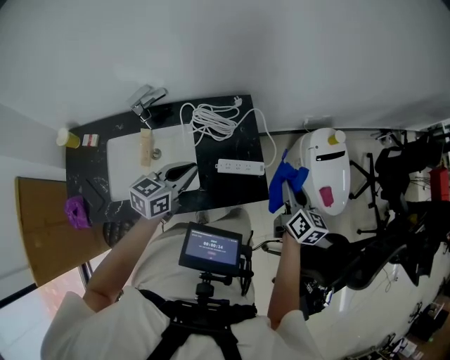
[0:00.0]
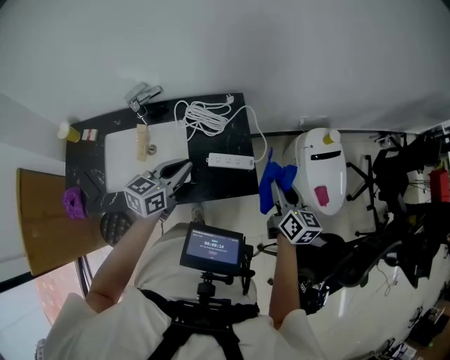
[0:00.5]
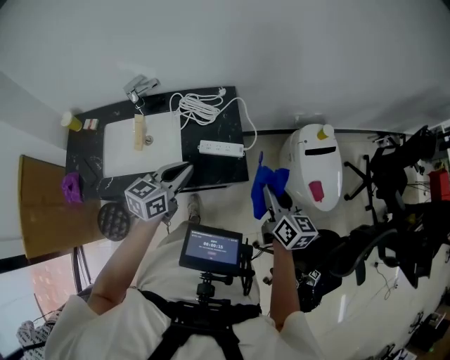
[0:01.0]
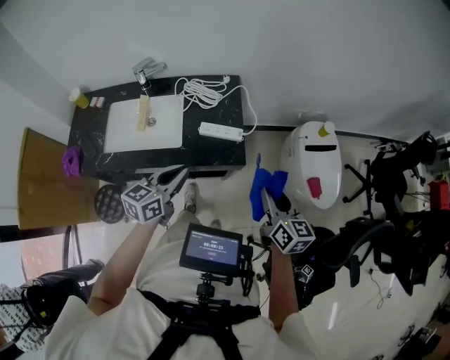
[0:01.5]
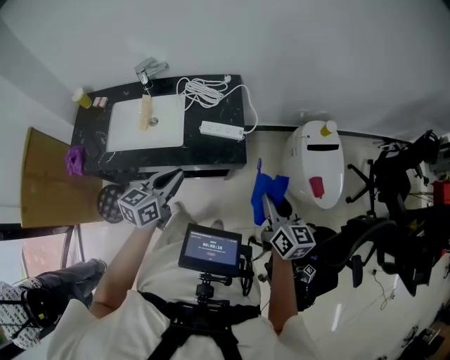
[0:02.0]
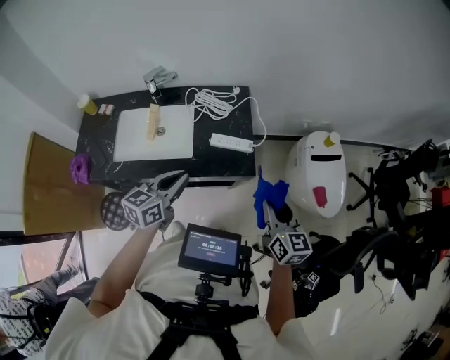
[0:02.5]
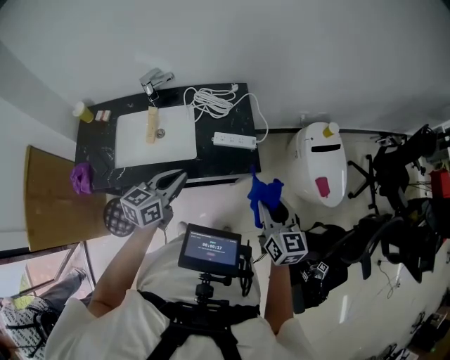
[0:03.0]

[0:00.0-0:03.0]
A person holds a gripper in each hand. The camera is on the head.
0:00.0 to 0:01.5: Both grippers move backward and to the right, about 30 cm.
0:01.5 to 0:03.0: The grippers both shift to the left by approximately 10 cm.

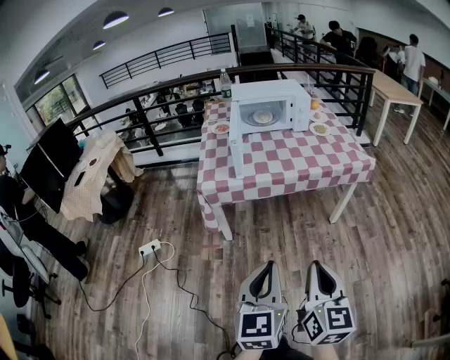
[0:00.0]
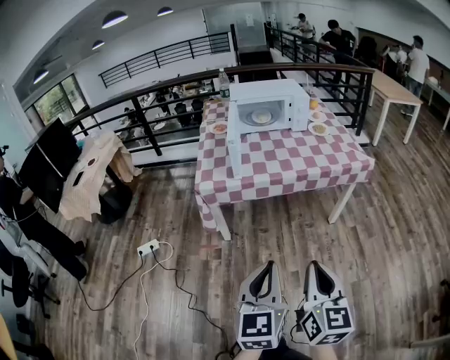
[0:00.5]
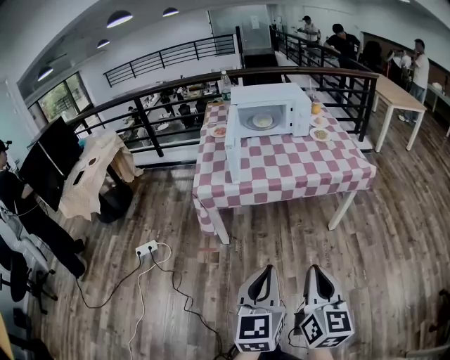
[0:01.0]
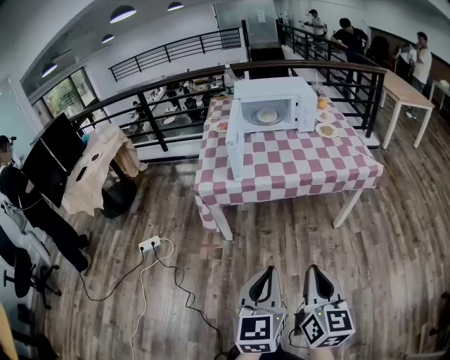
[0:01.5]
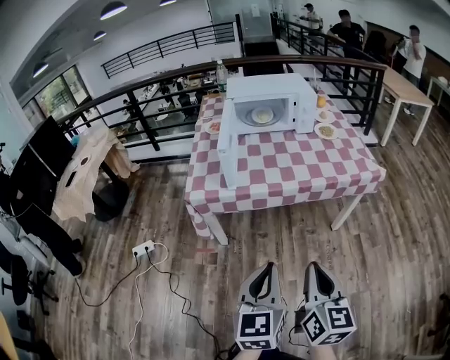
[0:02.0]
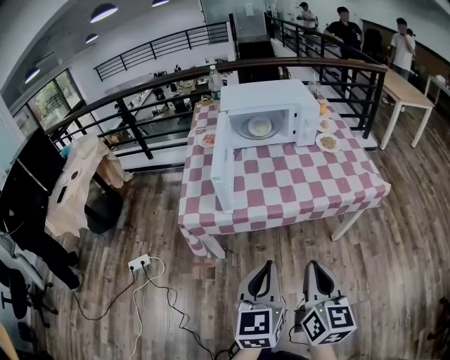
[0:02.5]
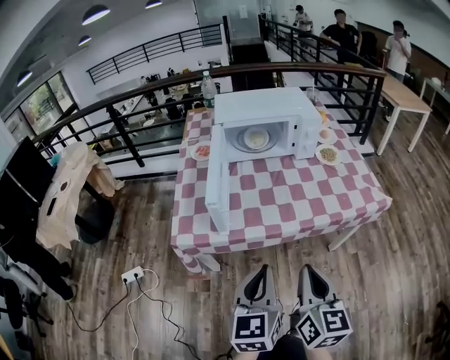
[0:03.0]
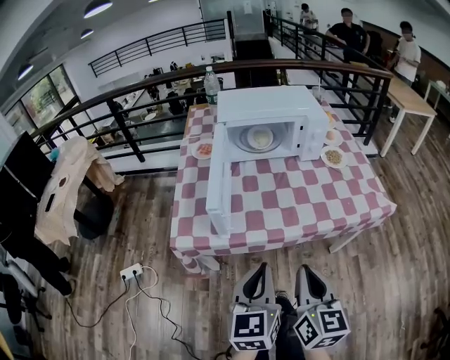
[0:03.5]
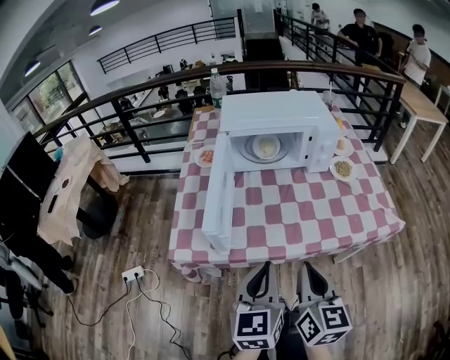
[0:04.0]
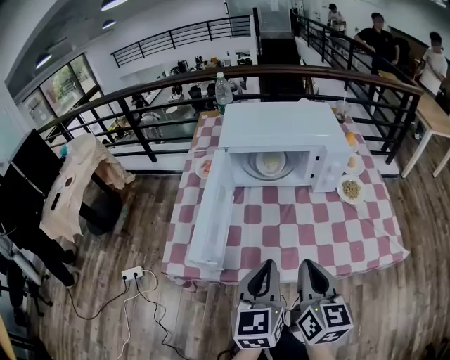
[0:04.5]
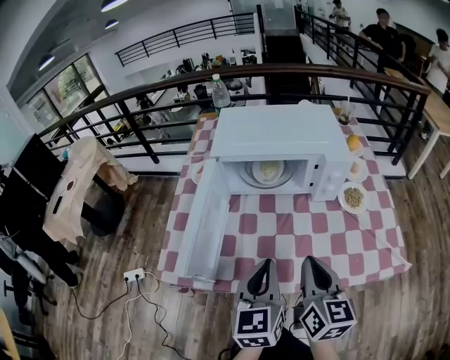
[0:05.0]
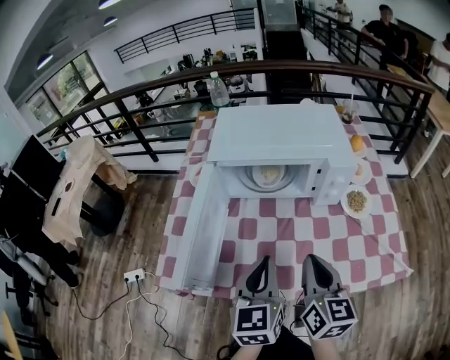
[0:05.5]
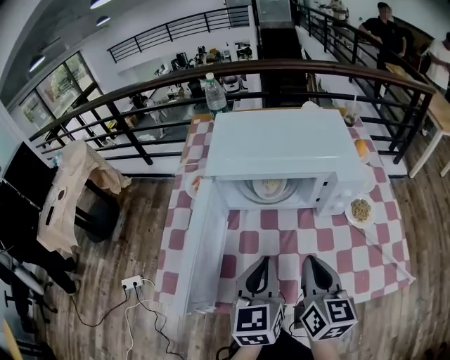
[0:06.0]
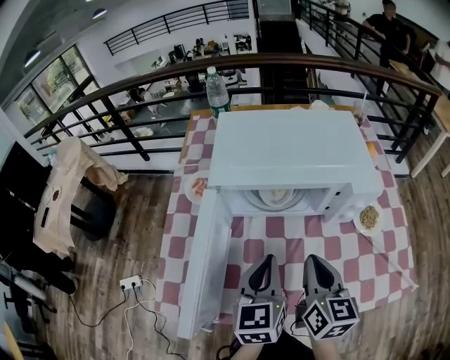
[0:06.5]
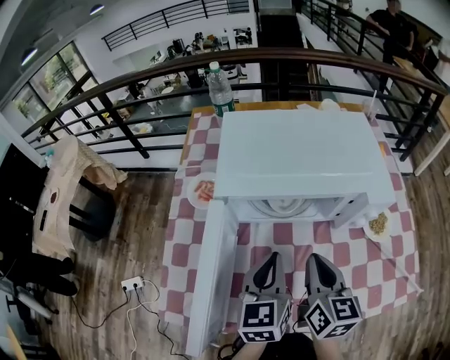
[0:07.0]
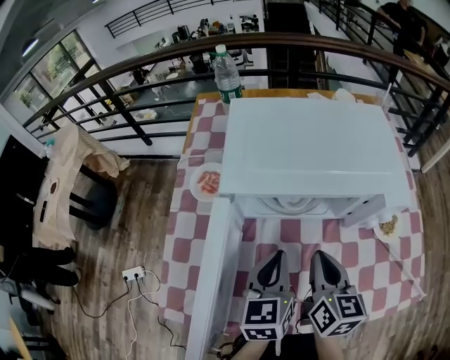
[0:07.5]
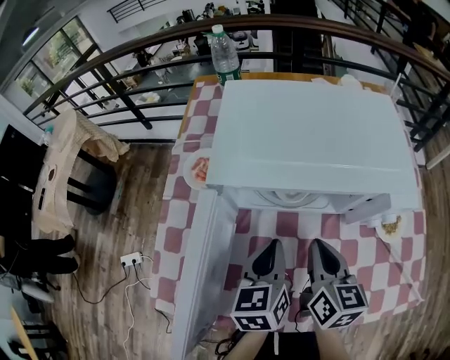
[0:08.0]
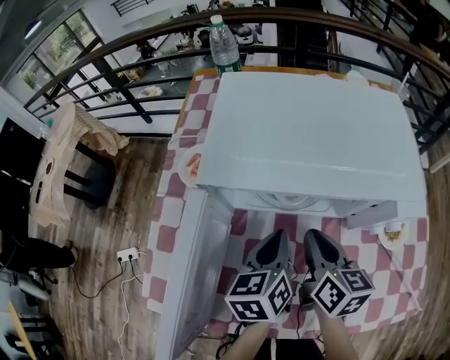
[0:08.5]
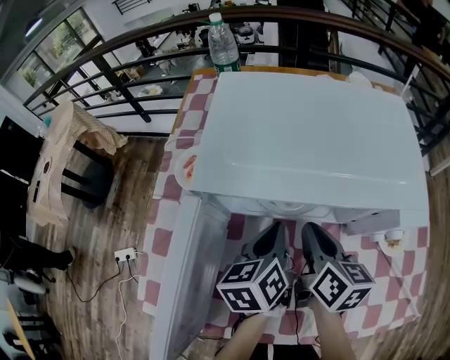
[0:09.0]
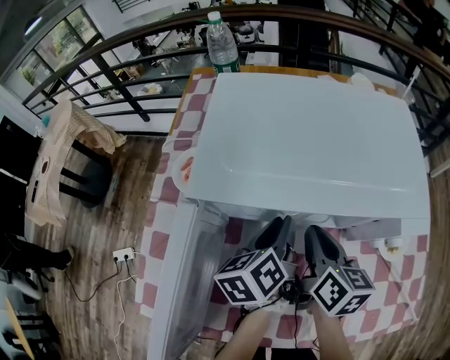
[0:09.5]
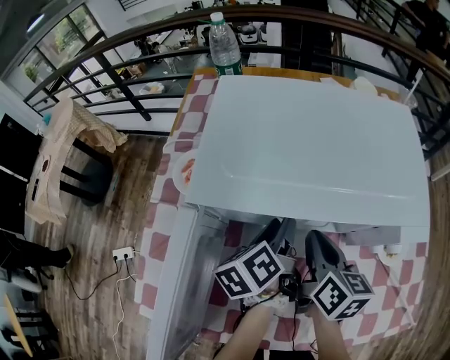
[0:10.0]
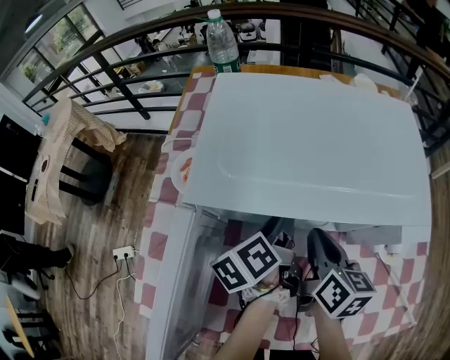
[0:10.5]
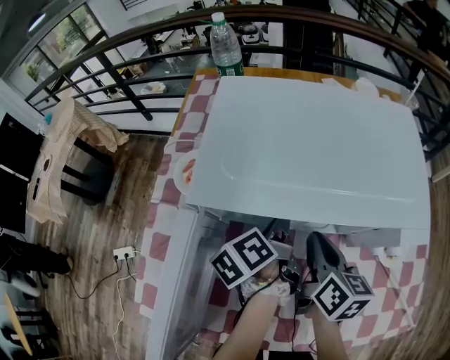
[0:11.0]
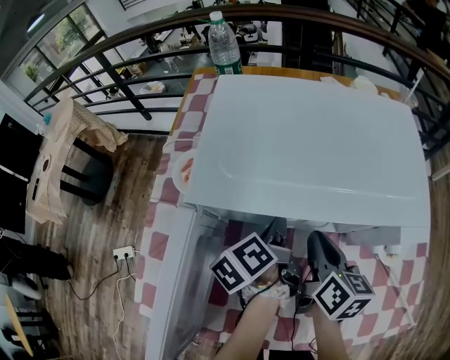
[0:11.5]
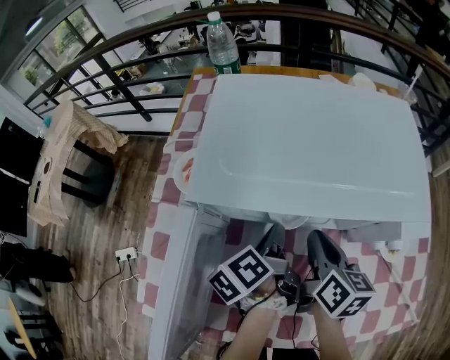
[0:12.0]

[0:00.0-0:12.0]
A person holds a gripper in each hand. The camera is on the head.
0:00.0 to 0:02.0: The two grippers go about 10 cm forward.
0:02.0 to 0:04.0: The grippers both shift forward by some 30 cm.
0:04.0 to 0:06.0: Both grippers travel together forward, roughly 25 cm.
0:06.0 to 0:08.0: The two grippers go approximately 15 cm forward and downward.
0:08.0 to 0:10.0: The two grippers go some 10 cm forward. The left gripper turns by approximately 40 degrees, and opens its fingers.
0:10.0 to 0:12.0: The left gripper closes its fingers.

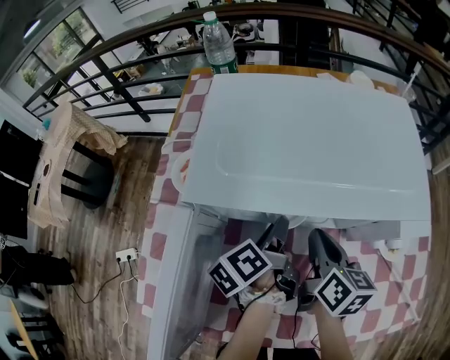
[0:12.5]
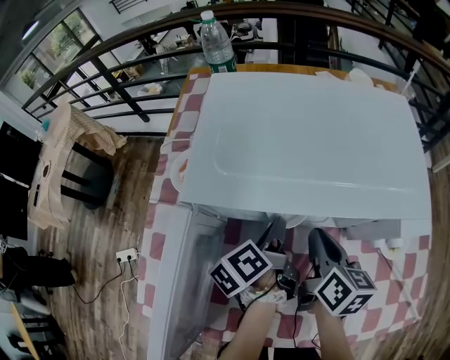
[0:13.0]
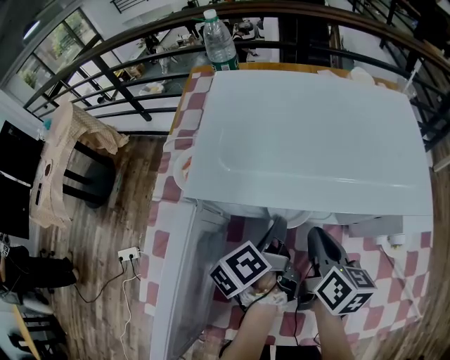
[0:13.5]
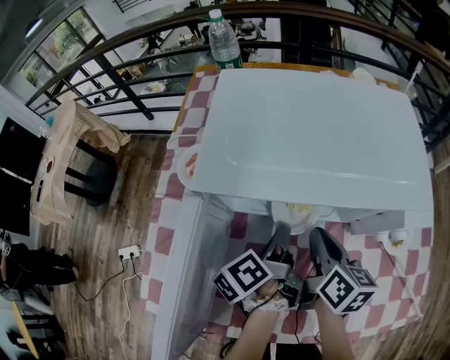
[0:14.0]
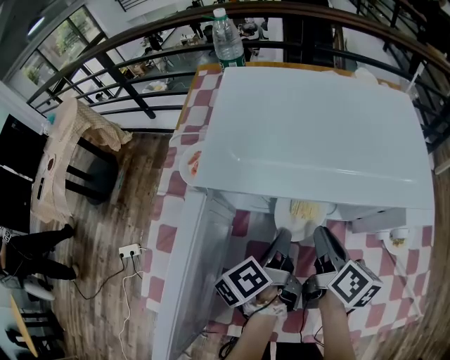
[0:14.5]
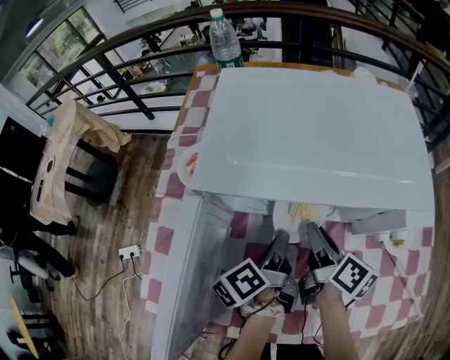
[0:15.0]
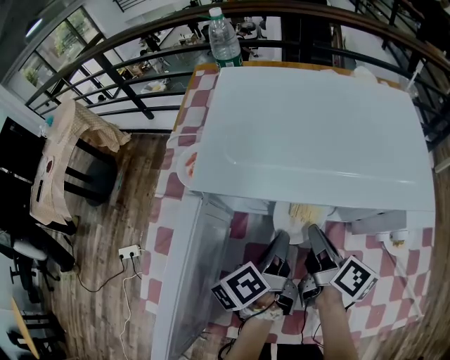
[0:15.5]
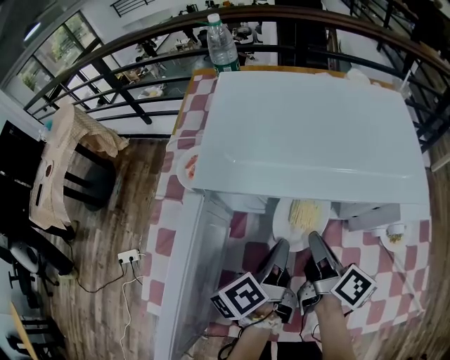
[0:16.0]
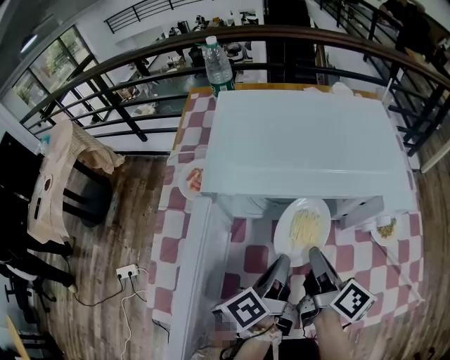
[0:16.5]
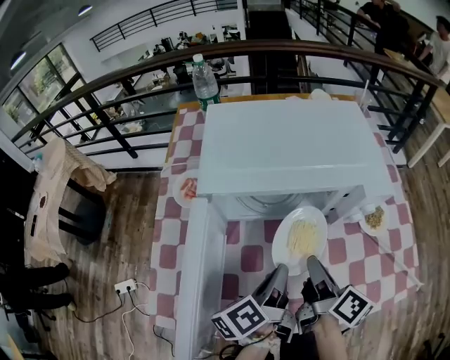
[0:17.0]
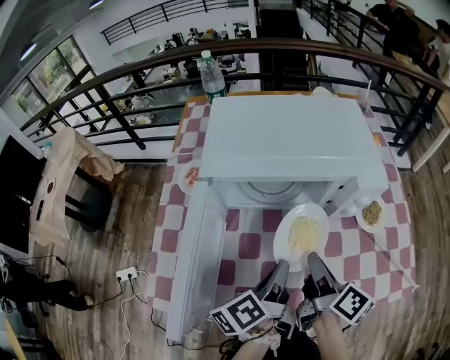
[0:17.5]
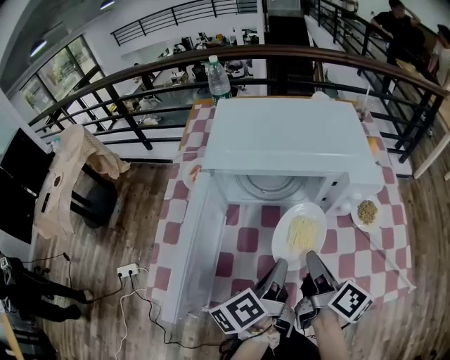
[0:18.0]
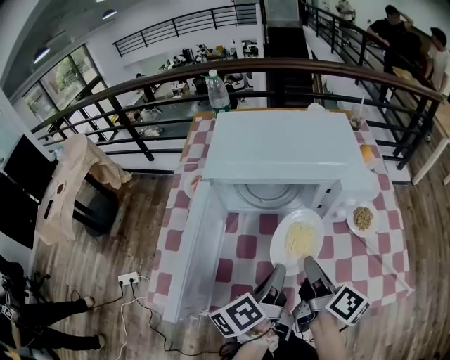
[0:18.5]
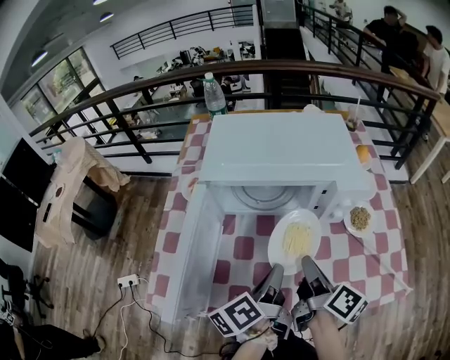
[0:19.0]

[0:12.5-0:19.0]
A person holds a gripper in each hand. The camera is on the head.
0:12.5 to 0:14.5: The left gripper closes up.
0:14.5 to 0:17.0: The two grippers go approximately 10 cm backward and upward.
0:17.0 to 0:19.0: The left gripper shifts by approximately 5 cm, while the right gripper ends up some 5 cm from where it was.

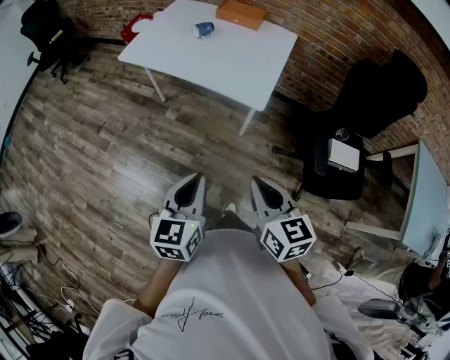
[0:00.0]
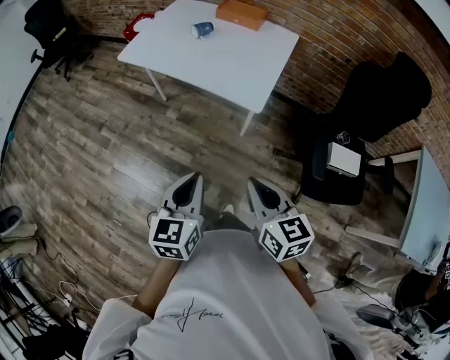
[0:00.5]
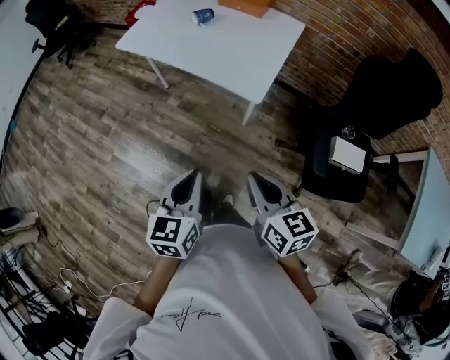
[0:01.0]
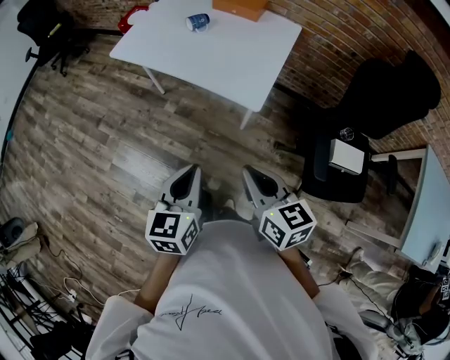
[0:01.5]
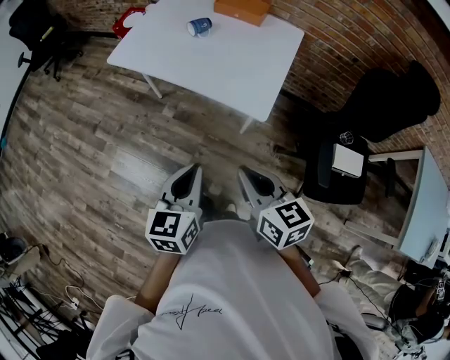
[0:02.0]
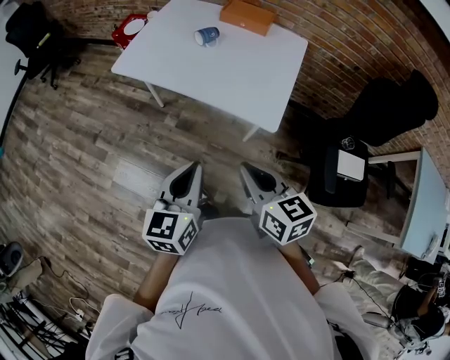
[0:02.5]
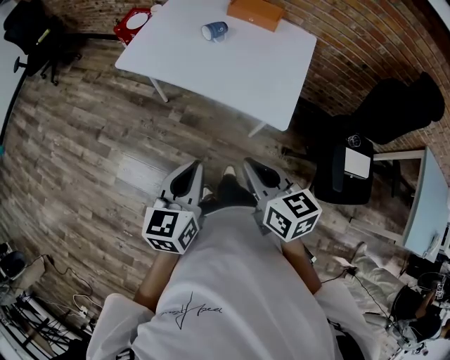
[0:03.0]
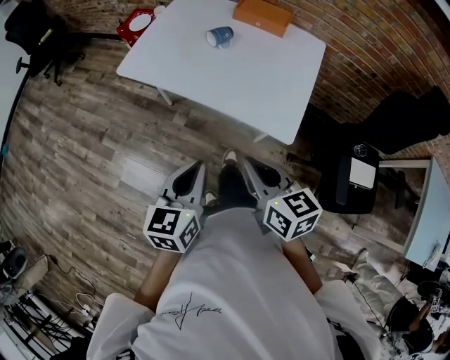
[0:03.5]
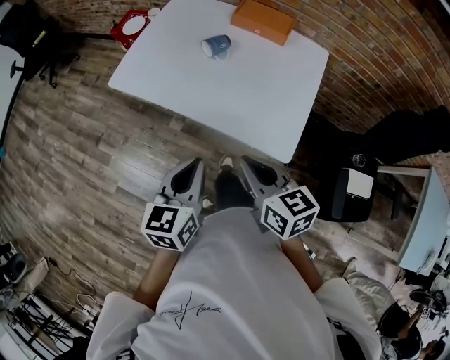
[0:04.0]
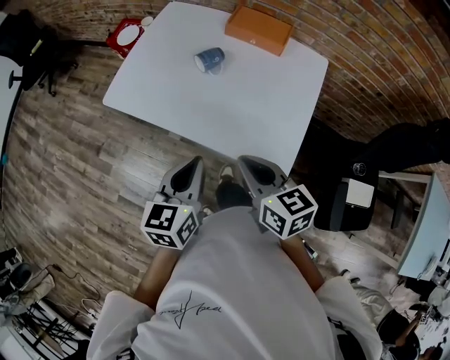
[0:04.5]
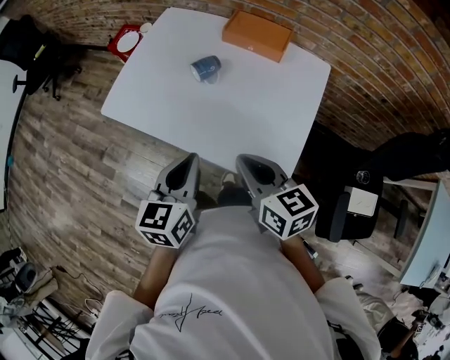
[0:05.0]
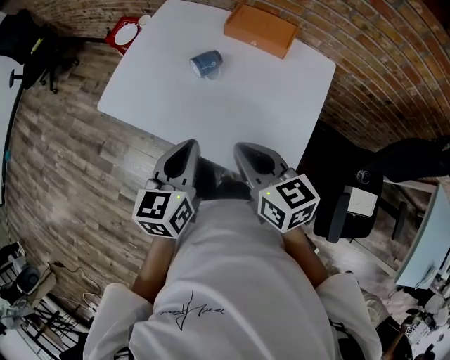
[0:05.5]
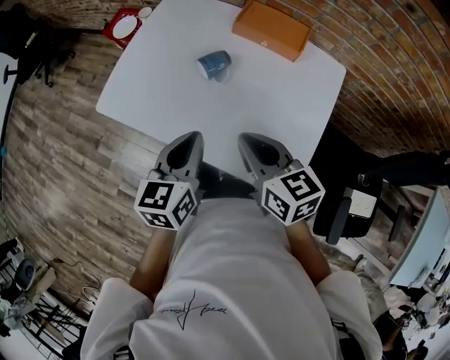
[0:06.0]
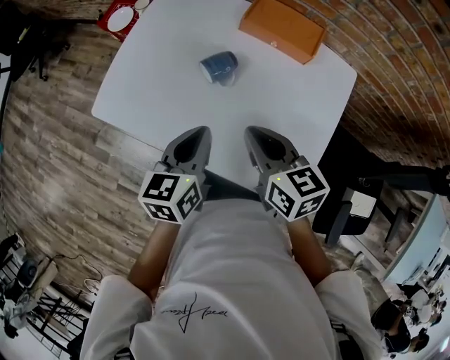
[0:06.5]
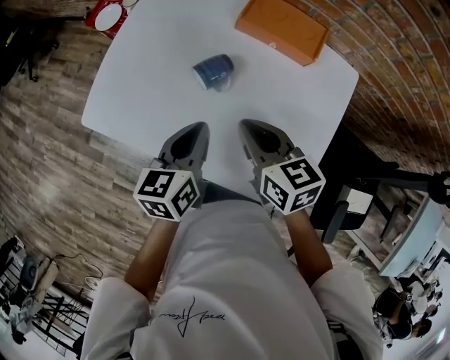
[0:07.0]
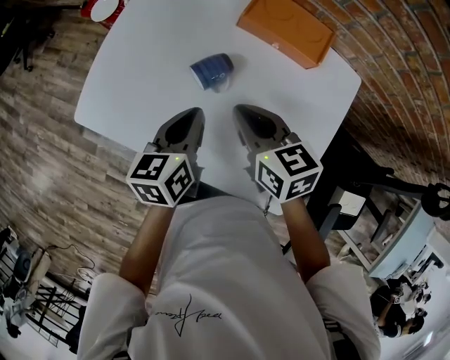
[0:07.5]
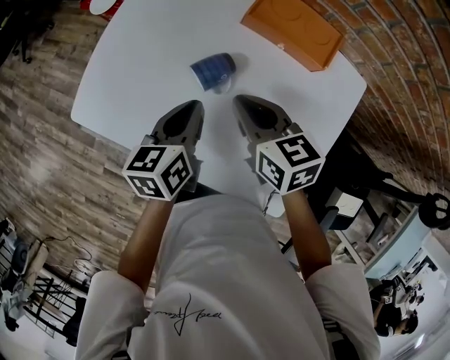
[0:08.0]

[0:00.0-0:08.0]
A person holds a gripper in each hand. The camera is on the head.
0:00.0 to 0:02.0: Both grippers move forward, roughly 10 cm.
0:02.0 to 0:04.0: Both grippers travel together forward, about 20 cm.
0:04.0 to 0:06.0: The grippers both shift forward by roughly 20 cm.
0:06.0 to 0:08.0: The grippers both shift forward and downward by about 20 cm.
